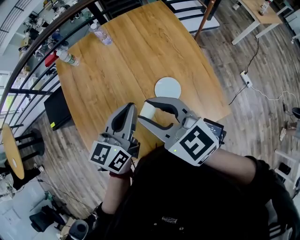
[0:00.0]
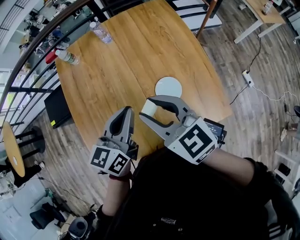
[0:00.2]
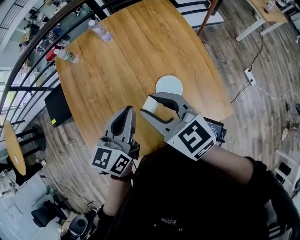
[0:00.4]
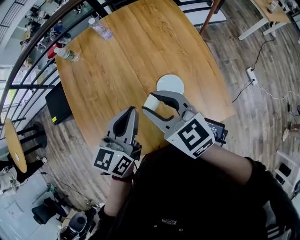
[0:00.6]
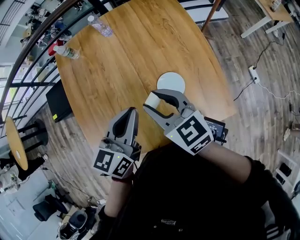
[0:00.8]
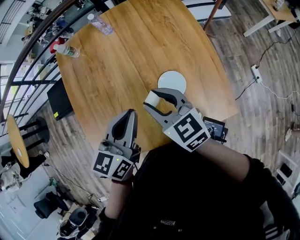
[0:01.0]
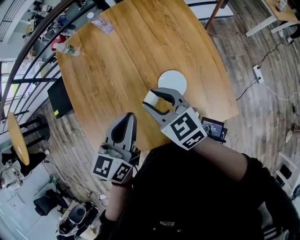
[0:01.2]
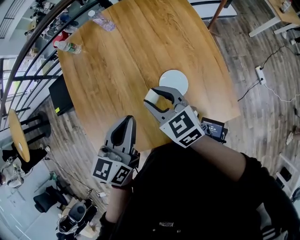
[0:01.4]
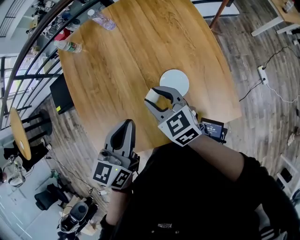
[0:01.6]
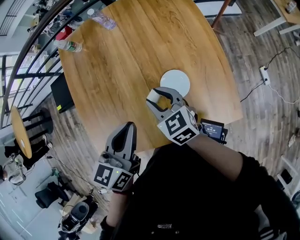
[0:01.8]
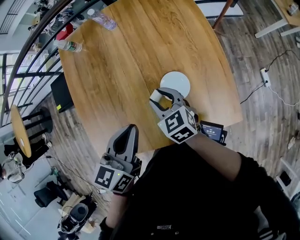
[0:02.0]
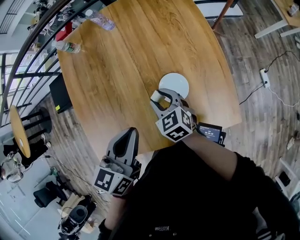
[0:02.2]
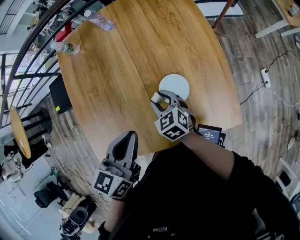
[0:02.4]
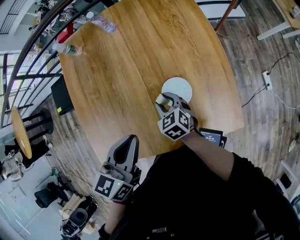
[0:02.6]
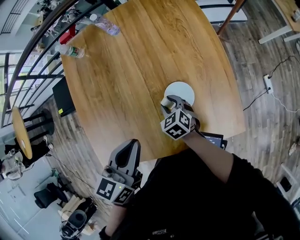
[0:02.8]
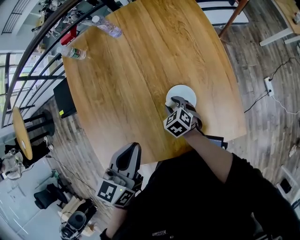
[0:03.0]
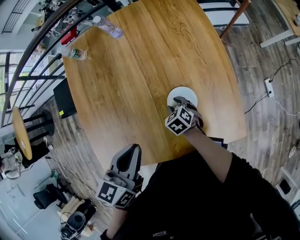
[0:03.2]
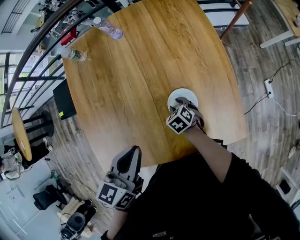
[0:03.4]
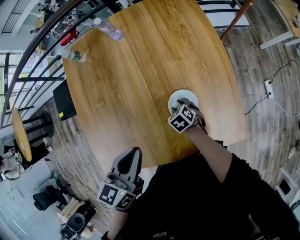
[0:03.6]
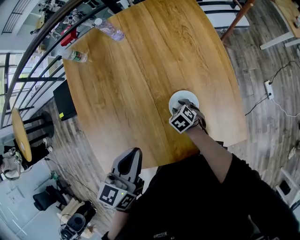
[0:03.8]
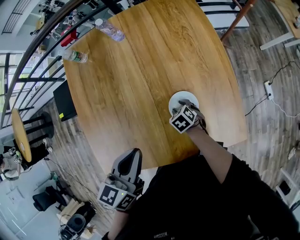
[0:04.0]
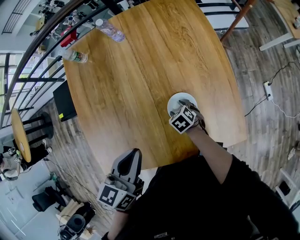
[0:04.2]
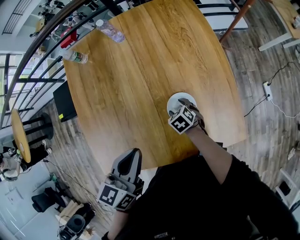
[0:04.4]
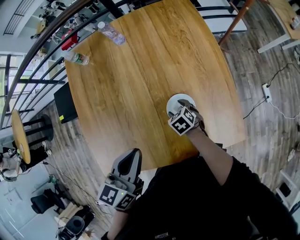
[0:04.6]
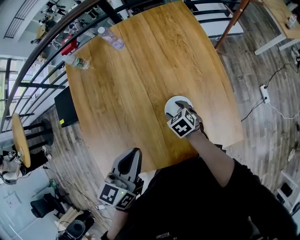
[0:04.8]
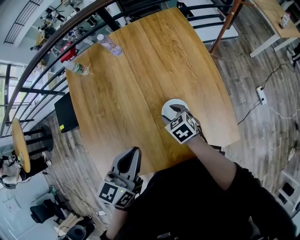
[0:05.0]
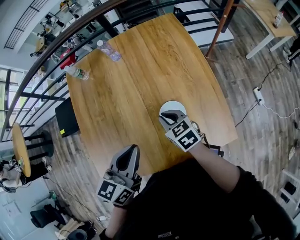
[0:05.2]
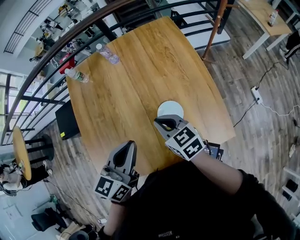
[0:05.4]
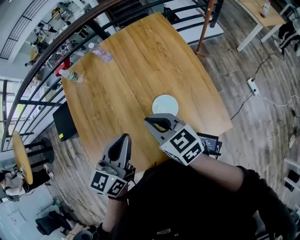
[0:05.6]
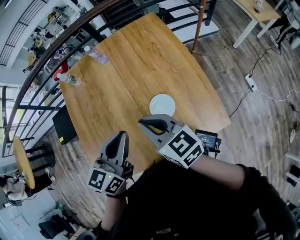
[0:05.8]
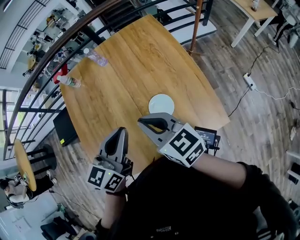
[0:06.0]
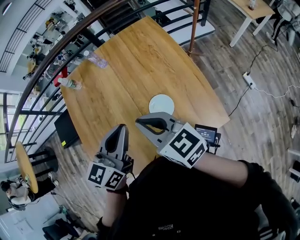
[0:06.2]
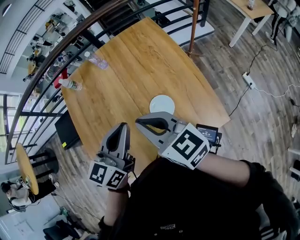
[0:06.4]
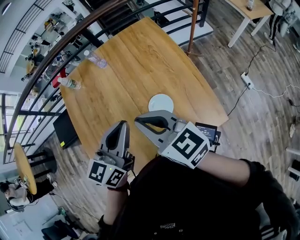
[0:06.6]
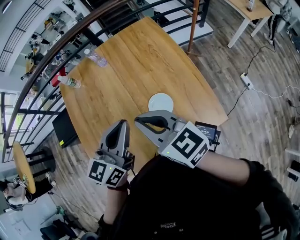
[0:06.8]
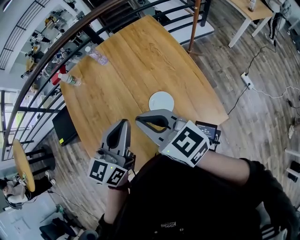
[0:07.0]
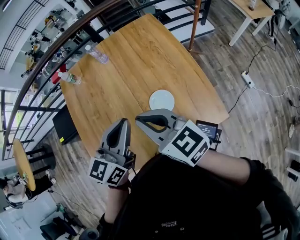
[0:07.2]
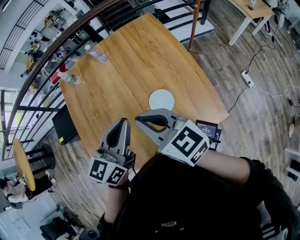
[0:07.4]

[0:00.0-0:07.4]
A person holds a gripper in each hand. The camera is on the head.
0:00.0 to 0:01.4: The right gripper is displaced downward by approximately 15 cm.
0:01.4 to 0:03.0: The right gripper goes about 25 cm downward, and tips its fingers downward by roughly 30 degrees.
0:03.0 to 0:04.4: The right gripper opens up.
0:04.4 to 0:06.0: The left gripper moves upward, approximately 10 cm, while the right gripper moves upward, about 35 cm, tips its fingers upward by some 50 degrees, and closes its fingers.
0:06.0 to 0:07.4: The grippers stay close to where they were, moving slightly.

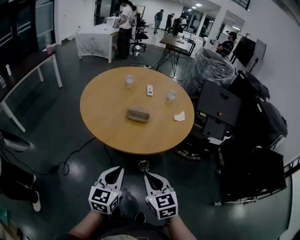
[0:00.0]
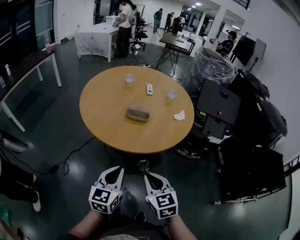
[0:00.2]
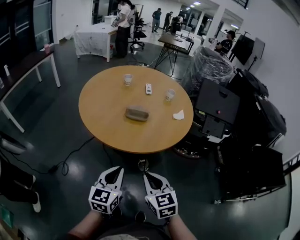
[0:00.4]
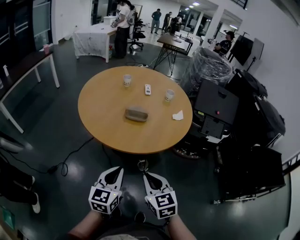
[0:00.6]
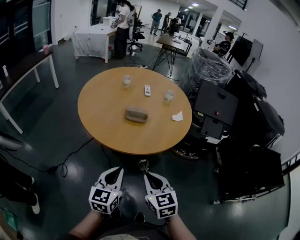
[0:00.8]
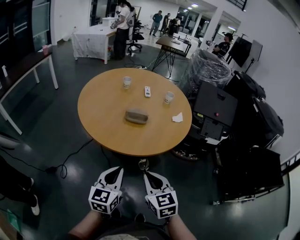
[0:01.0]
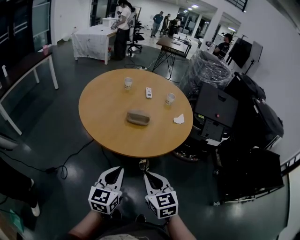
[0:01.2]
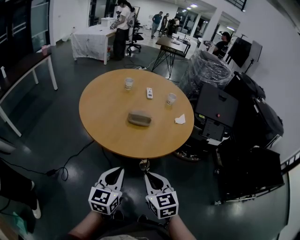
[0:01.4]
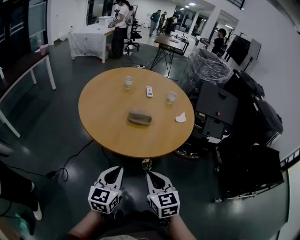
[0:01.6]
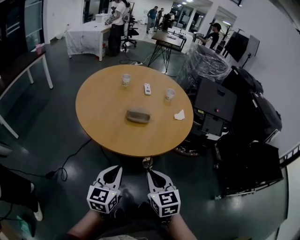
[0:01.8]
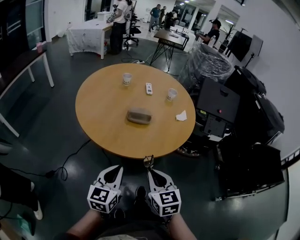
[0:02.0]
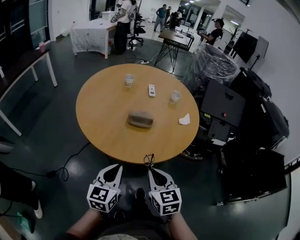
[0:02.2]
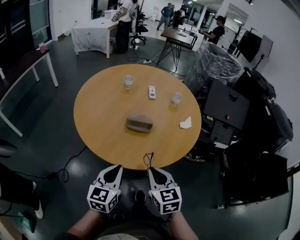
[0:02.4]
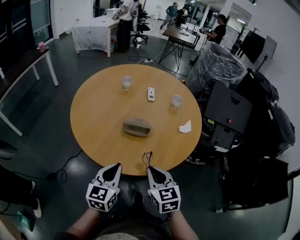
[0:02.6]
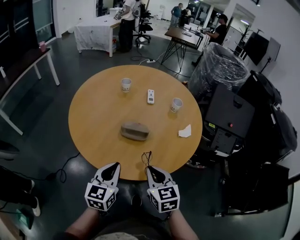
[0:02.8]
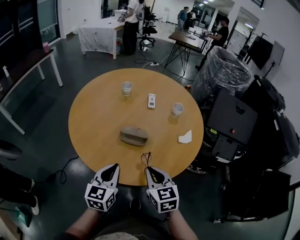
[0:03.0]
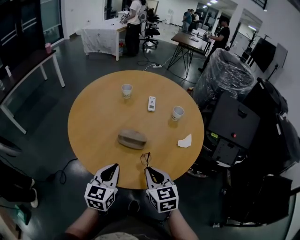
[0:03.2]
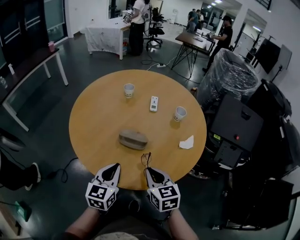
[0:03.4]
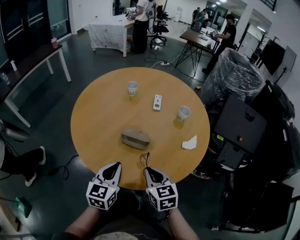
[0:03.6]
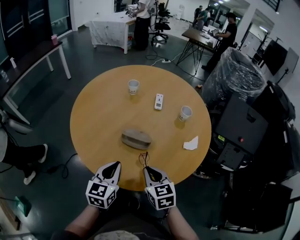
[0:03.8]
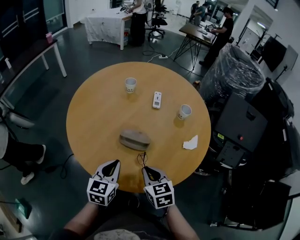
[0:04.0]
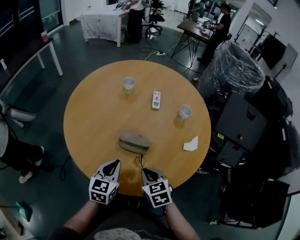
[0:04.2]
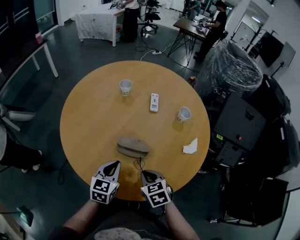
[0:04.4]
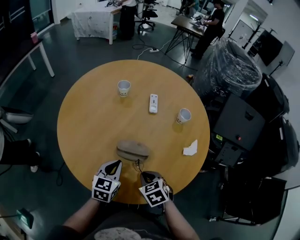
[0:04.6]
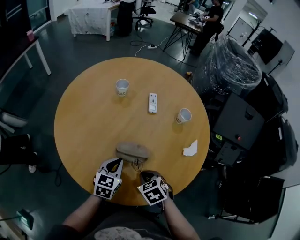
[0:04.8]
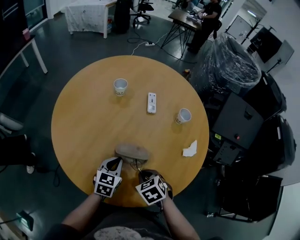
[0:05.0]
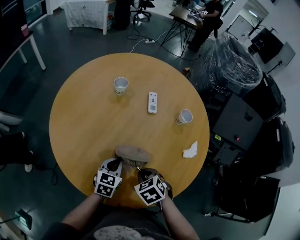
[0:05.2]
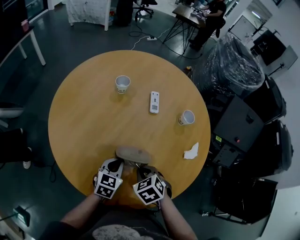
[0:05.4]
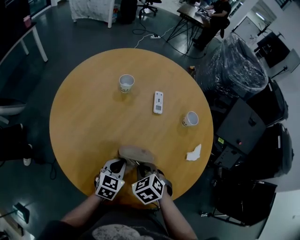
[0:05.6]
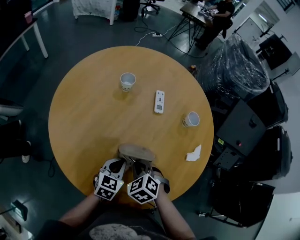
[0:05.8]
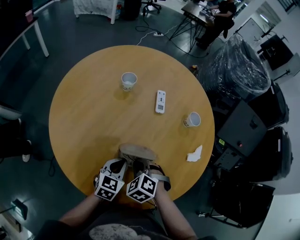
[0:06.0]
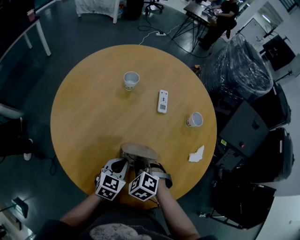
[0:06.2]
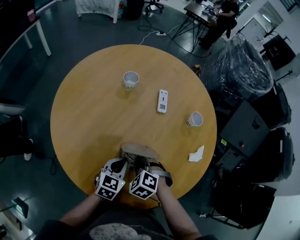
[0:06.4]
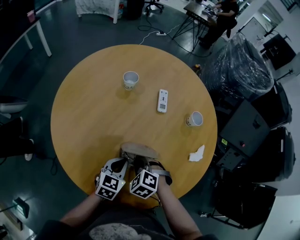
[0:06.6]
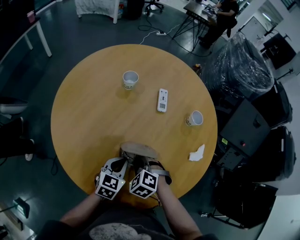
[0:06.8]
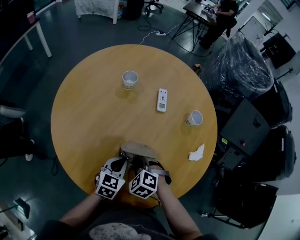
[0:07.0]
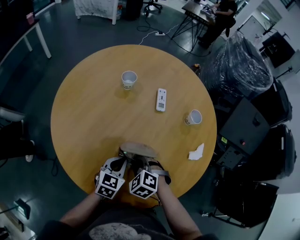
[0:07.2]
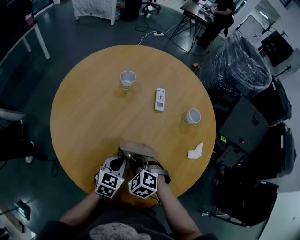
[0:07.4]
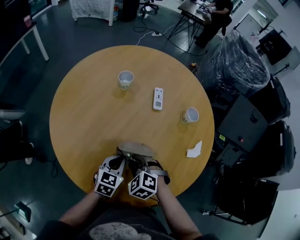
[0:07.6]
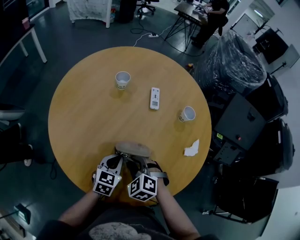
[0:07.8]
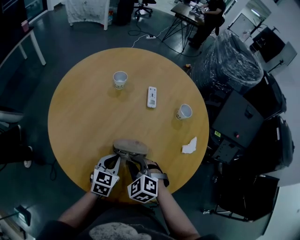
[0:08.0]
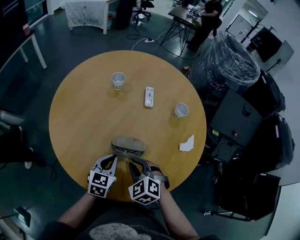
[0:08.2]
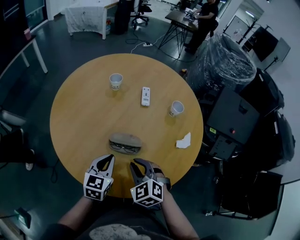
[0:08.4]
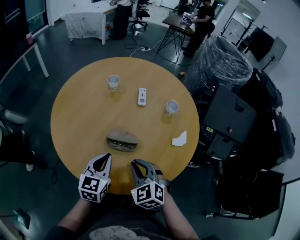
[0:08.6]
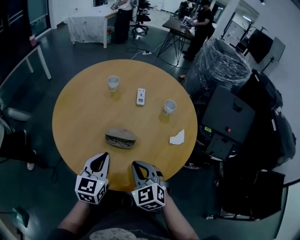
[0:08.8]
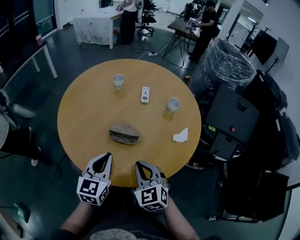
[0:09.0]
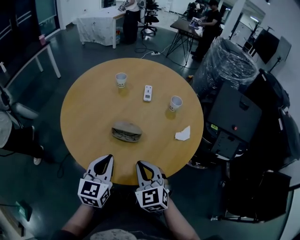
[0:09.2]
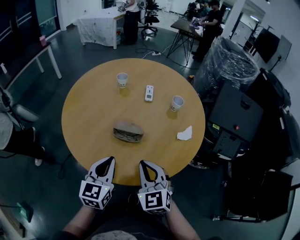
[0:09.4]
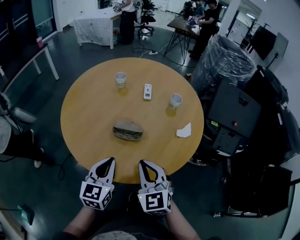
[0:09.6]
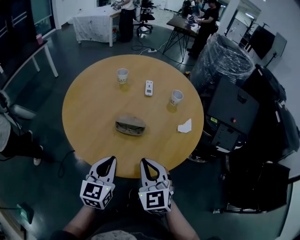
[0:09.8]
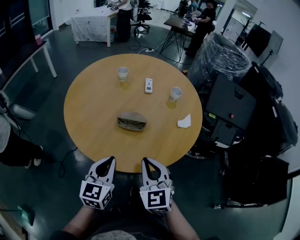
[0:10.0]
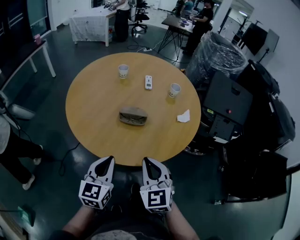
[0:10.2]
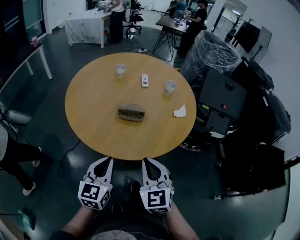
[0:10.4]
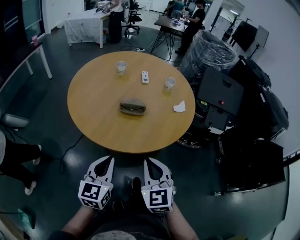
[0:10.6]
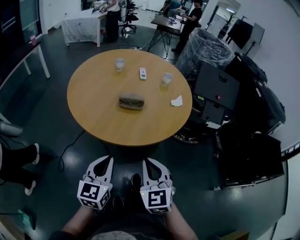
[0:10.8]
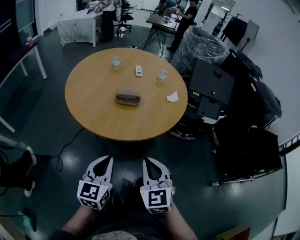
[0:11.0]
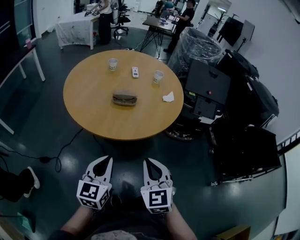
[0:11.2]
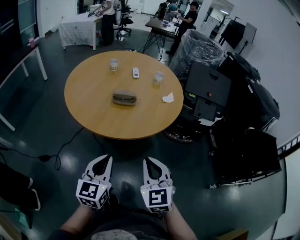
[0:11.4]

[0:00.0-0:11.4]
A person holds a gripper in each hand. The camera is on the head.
0:00.0 to 0:01.4: The grippers make only small movements.
0:01.4 to 0:02.8: The grippers both shift forward by some 20 cm.
0:02.8 to 0:04.2: Both grippers move forward and downward, roughly 15 cm.
0:04.2 to 0:05.6: The right gripper is displaced forward by some 10 cm, and swivels roughly 30 degrees. The left gripper goes approximately 15 cm forward and downward.
0:05.6 to 0:07.2: The right gripper turns by roughly 20 degrees.
0:07.2 to 0:08.6: The left gripper moves upward and backward, some 15 cm; the right gripper goes some 15 cm upward, backward and to the right, and turns by approximately 30 degrees.
0:08.6 to 0:10.0: The left gripper heads backward, covering about 15 cm. The right gripper heads backward and upward, covering some 15 cm, and rotates some 20 degrees.
0:10.0 to 0:11.4: The two grippers go approximately 20 cm backward.

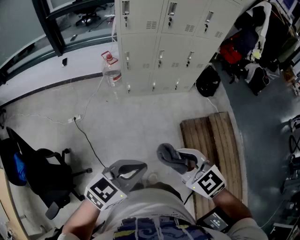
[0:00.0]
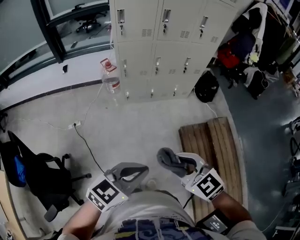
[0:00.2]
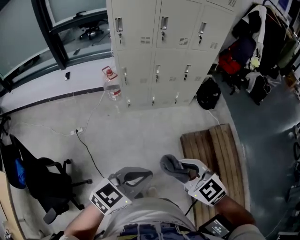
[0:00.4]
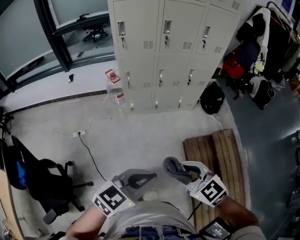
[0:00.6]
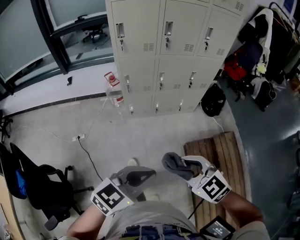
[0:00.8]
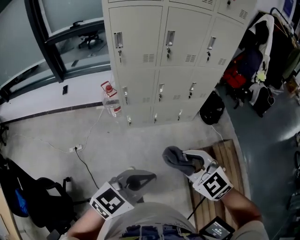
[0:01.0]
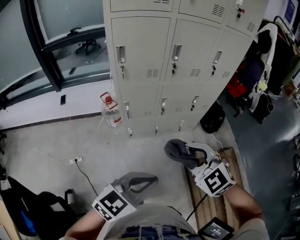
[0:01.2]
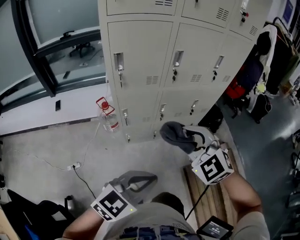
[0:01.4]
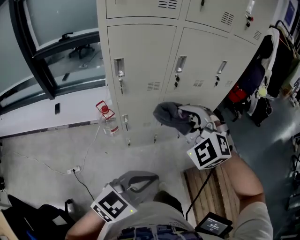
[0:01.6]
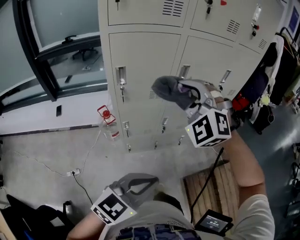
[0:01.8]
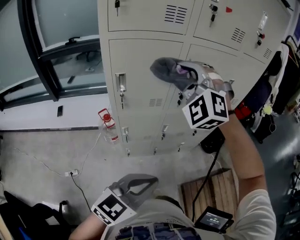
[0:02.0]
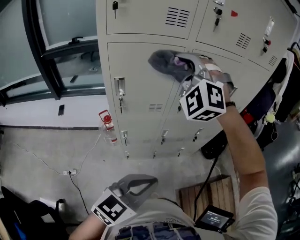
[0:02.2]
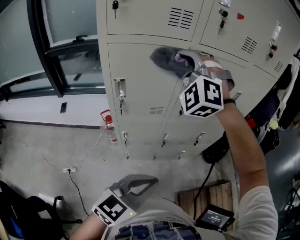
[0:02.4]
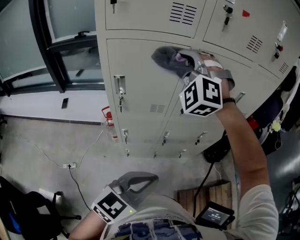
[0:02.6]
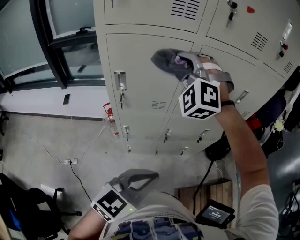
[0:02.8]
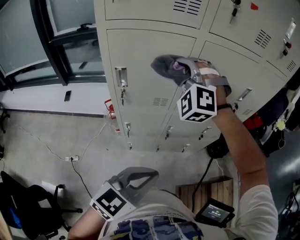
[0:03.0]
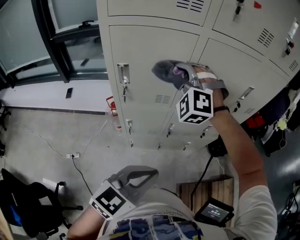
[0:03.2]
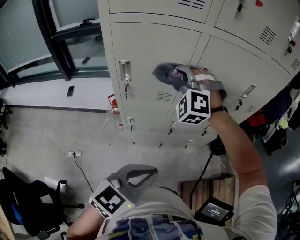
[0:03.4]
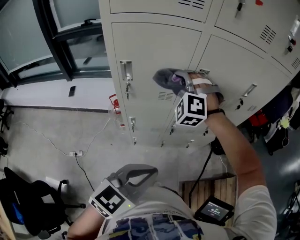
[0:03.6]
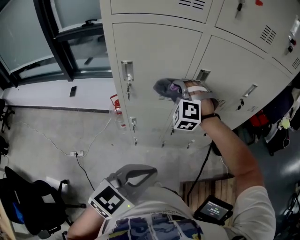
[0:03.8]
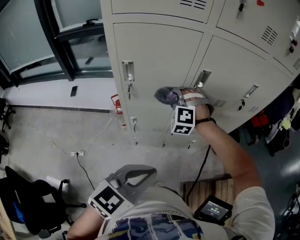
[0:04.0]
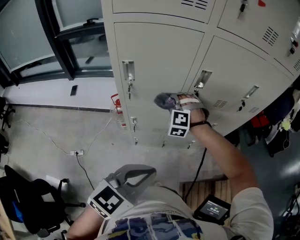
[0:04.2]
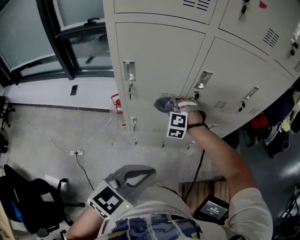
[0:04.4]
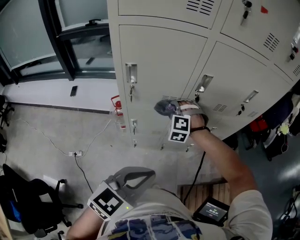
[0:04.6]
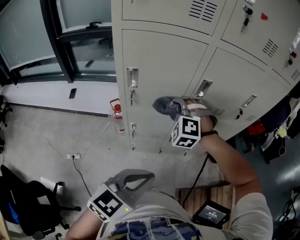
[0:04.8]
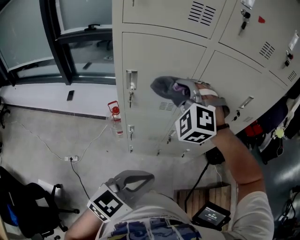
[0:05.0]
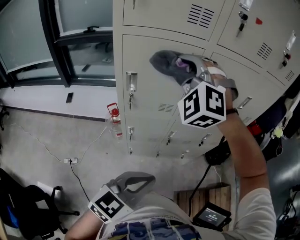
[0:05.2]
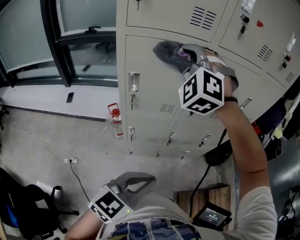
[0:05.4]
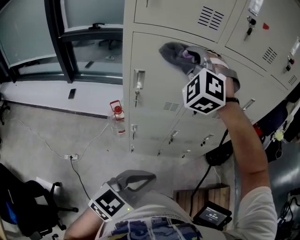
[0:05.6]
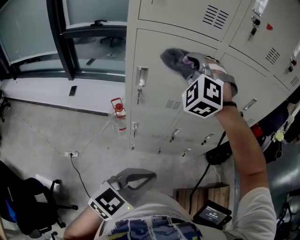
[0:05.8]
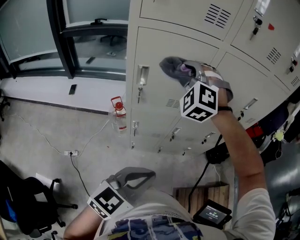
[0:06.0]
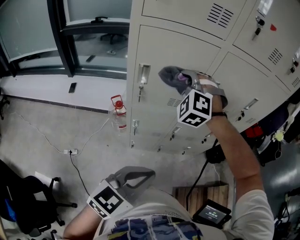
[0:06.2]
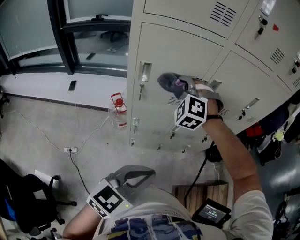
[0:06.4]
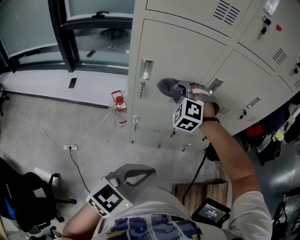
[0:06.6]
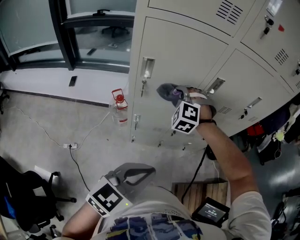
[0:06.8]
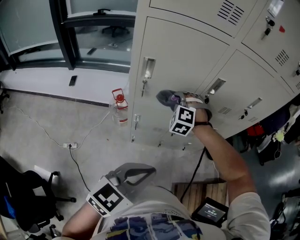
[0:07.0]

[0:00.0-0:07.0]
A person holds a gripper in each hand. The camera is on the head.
0:00.0 to 0:01.4: The left gripper ends up approximately 30 cm from where it was.
0:01.4 to 0:02.8: The left gripper moves roughly 20 cm.
